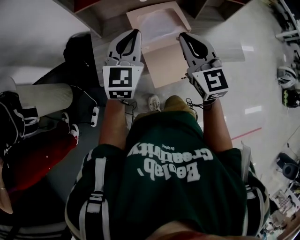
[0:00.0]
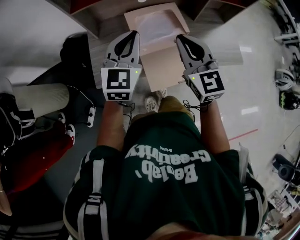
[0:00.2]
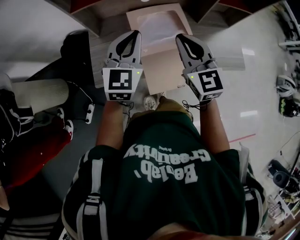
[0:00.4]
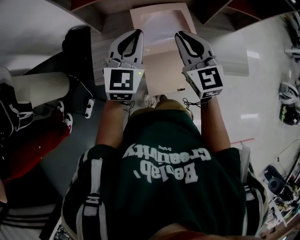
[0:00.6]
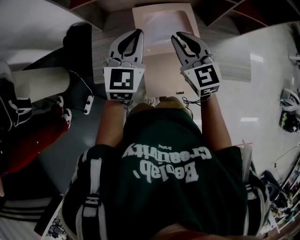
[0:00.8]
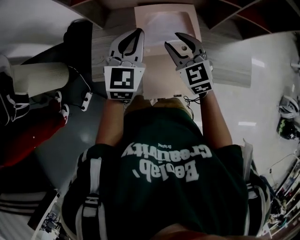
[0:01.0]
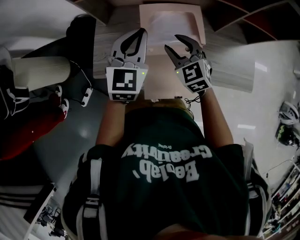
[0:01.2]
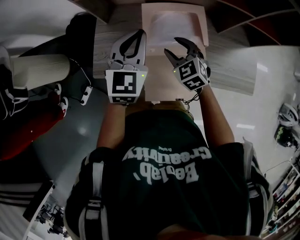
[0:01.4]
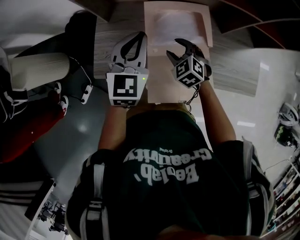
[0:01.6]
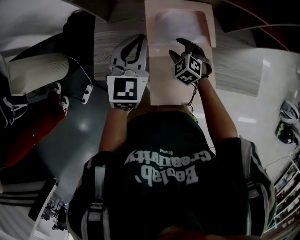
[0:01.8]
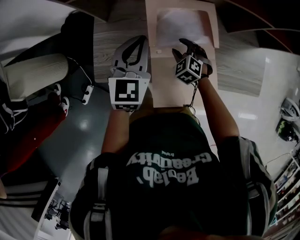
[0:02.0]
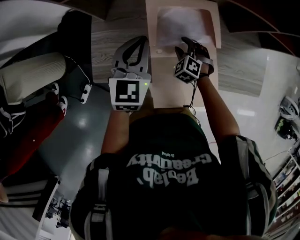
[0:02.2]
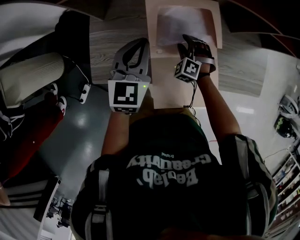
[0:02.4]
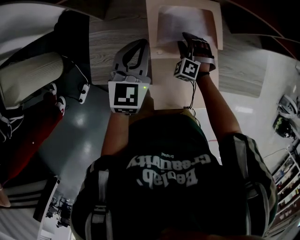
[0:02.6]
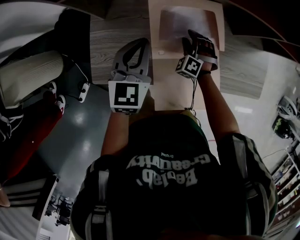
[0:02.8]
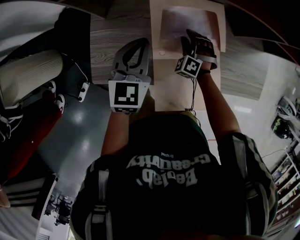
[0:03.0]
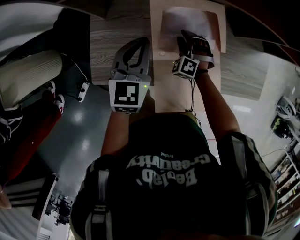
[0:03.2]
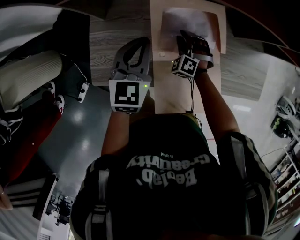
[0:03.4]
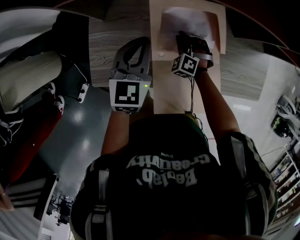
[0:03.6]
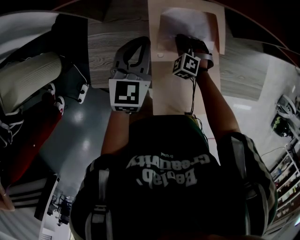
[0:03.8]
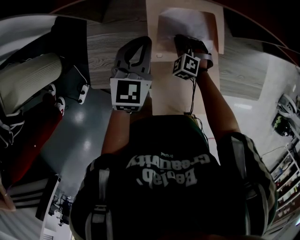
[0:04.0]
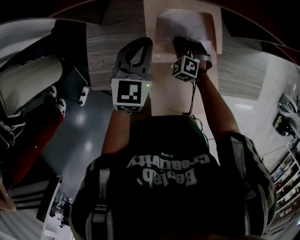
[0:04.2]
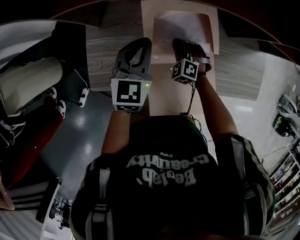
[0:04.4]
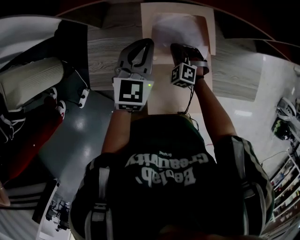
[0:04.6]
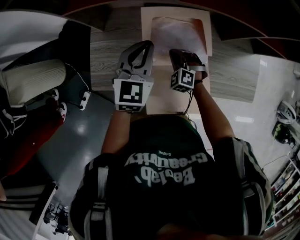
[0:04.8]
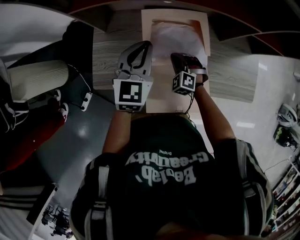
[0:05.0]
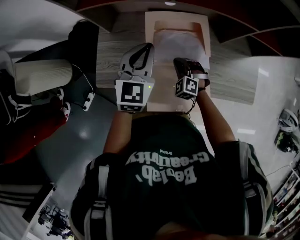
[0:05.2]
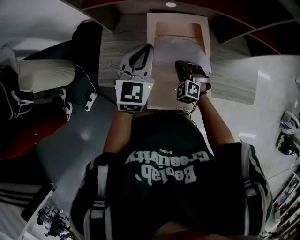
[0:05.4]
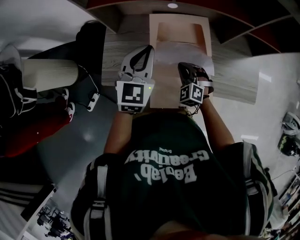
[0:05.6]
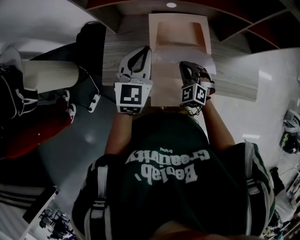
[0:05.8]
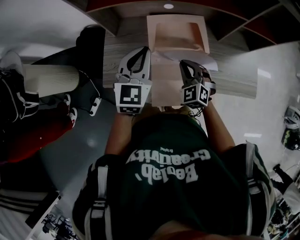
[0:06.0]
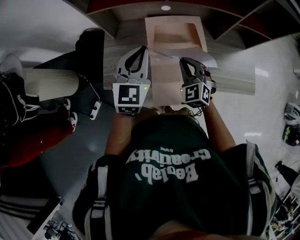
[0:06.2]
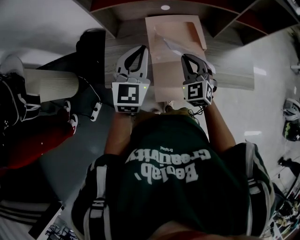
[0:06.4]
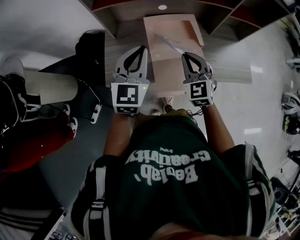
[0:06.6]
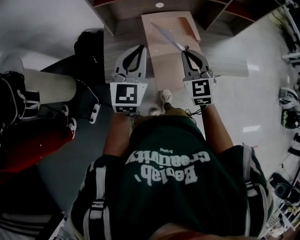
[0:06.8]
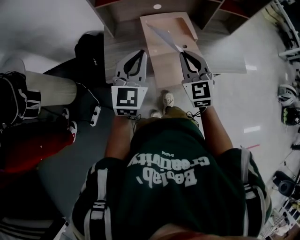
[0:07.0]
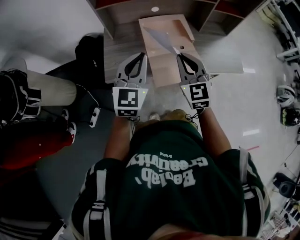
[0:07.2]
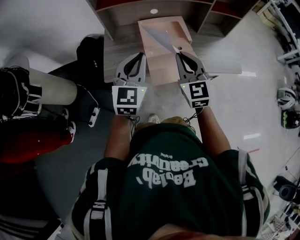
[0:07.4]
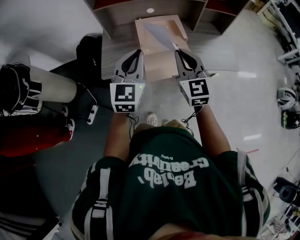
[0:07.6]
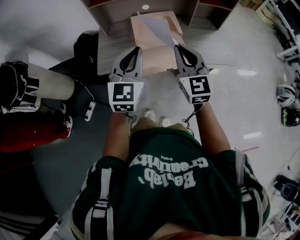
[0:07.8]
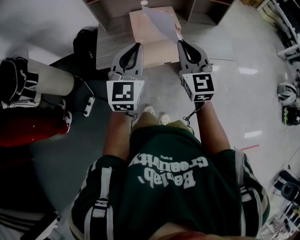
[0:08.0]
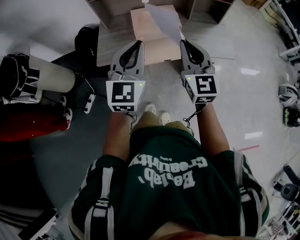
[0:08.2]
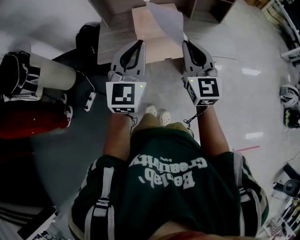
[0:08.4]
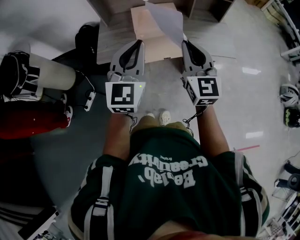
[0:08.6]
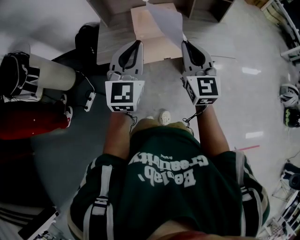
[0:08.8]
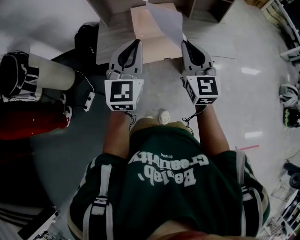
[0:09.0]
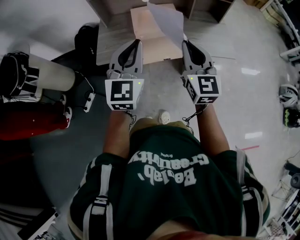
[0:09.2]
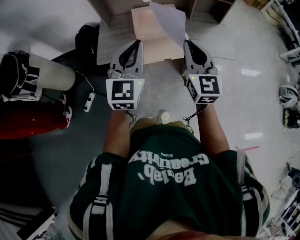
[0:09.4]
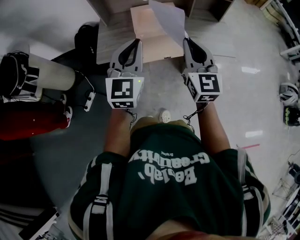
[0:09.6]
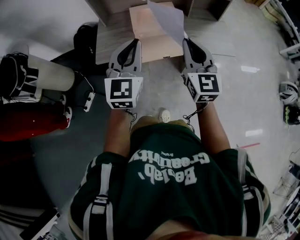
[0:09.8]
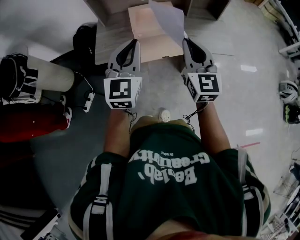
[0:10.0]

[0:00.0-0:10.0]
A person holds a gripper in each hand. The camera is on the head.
0.0 to 1.4 s: The right gripper heads downward and forward, covering about 25 cm, tilts its fingers approximately 30 degrees downward, and opens its fingers, while the left gripper shifts some 15 cm forward and downward.
1.4 to 2.8 s: The right gripper shifts about 20 cm downward and forward, and swivels approximately 40 degrees; the left gripper shifts about 10 cm downward.
2.8 to 4.2 s: The right gripper closes its fingers.
4.2 to 5.8 s: The grippers both shift upward and backward by approximately 20 cm.
5.8 to 7.2 s: The right gripper moves upward and backward, some 25 cm, and changes its angle by approximately 40 degrees; the left gripper moves backward, about 20 cm.
7.2 to 8.6 s: The right gripper moves to the right, backward and upward, some 20 cm, while the left gripper goes approximately 20 cm backward, to the right and upward.
8.6 to 10.0 s: The grippers move only a little.

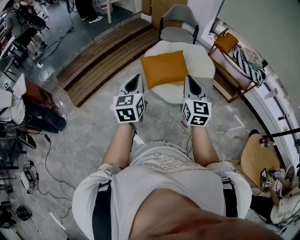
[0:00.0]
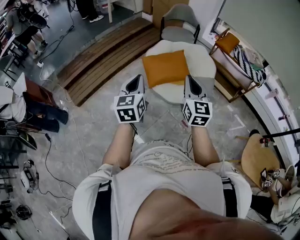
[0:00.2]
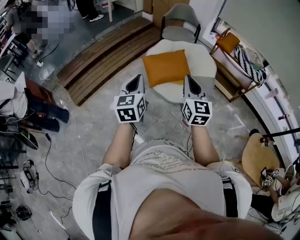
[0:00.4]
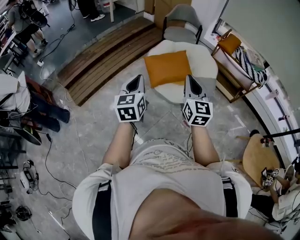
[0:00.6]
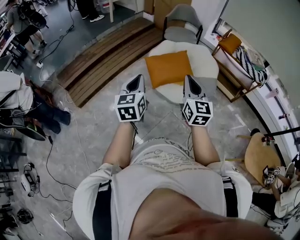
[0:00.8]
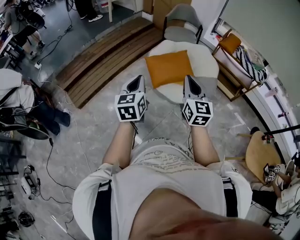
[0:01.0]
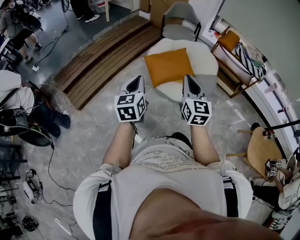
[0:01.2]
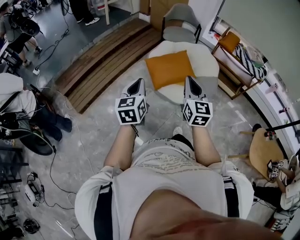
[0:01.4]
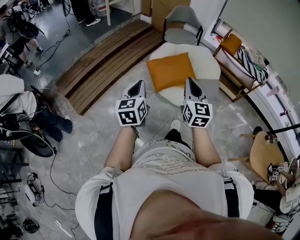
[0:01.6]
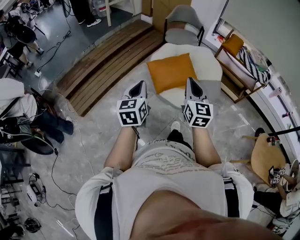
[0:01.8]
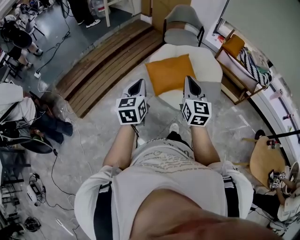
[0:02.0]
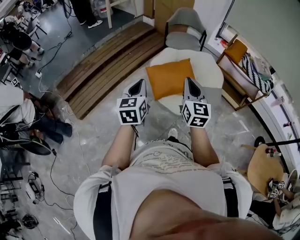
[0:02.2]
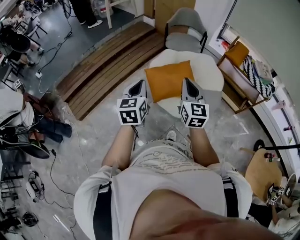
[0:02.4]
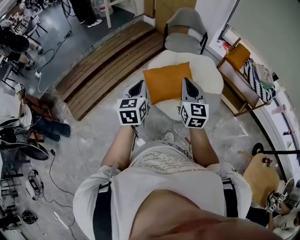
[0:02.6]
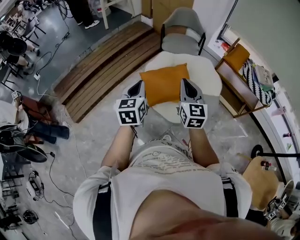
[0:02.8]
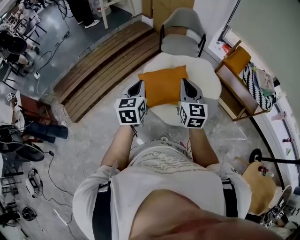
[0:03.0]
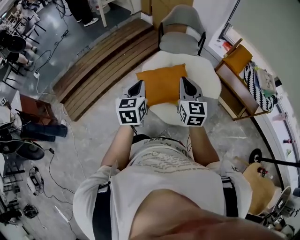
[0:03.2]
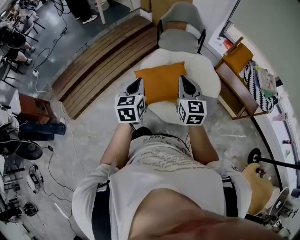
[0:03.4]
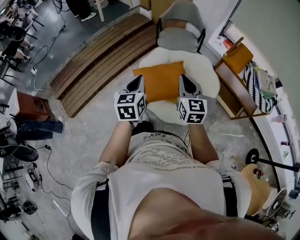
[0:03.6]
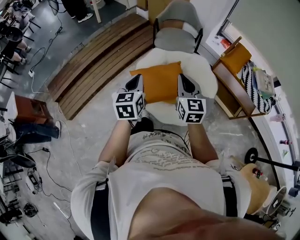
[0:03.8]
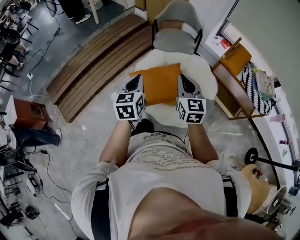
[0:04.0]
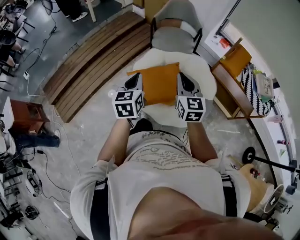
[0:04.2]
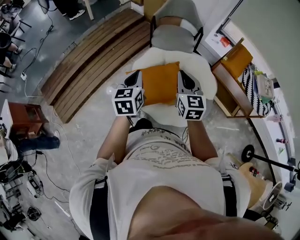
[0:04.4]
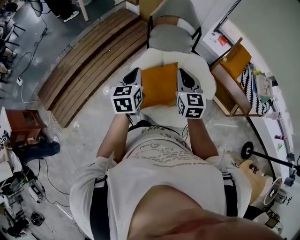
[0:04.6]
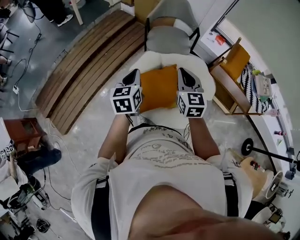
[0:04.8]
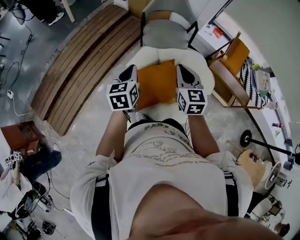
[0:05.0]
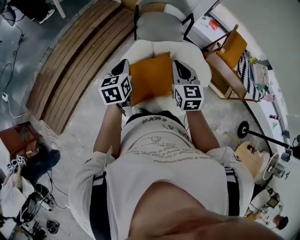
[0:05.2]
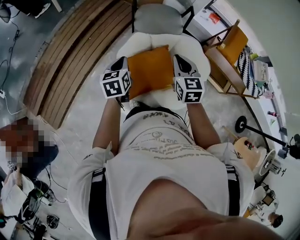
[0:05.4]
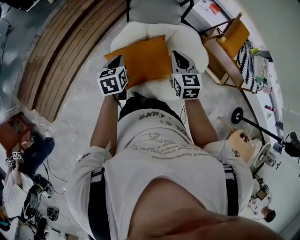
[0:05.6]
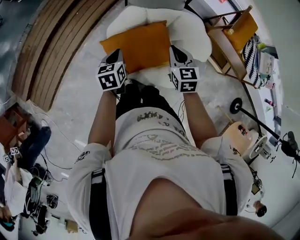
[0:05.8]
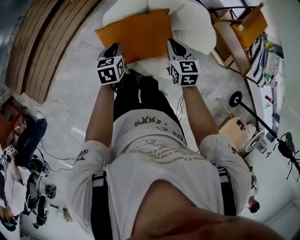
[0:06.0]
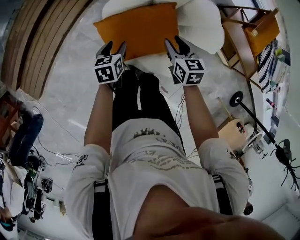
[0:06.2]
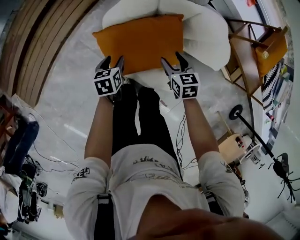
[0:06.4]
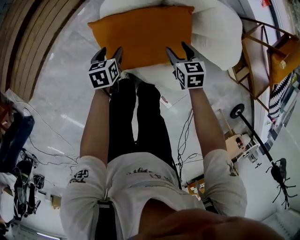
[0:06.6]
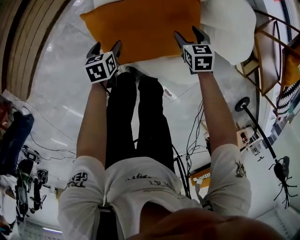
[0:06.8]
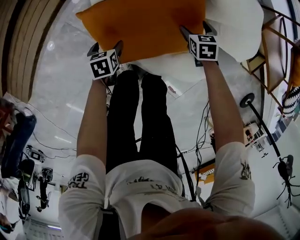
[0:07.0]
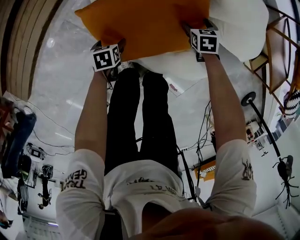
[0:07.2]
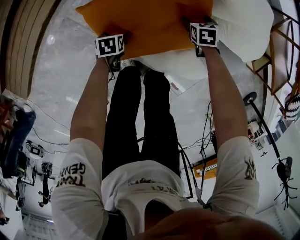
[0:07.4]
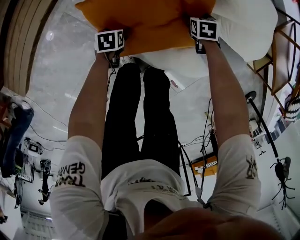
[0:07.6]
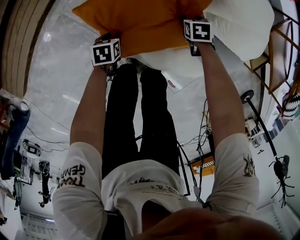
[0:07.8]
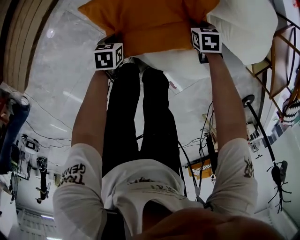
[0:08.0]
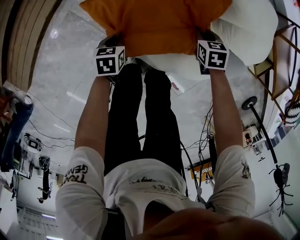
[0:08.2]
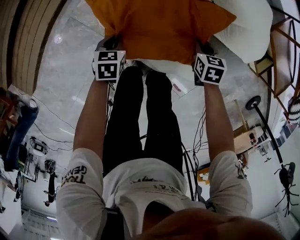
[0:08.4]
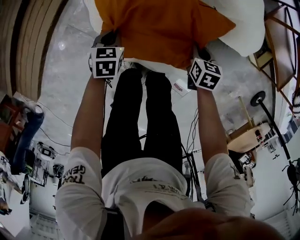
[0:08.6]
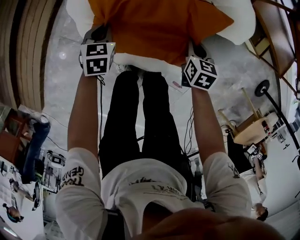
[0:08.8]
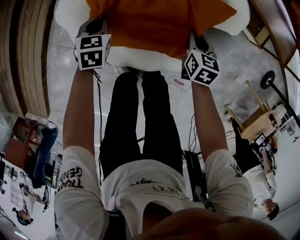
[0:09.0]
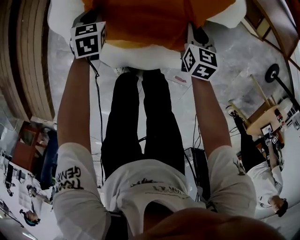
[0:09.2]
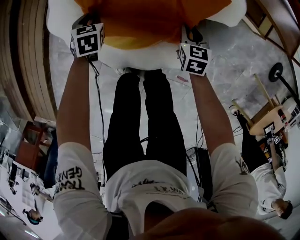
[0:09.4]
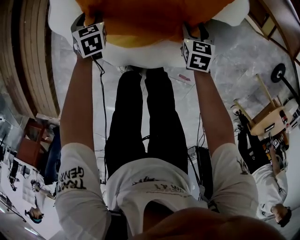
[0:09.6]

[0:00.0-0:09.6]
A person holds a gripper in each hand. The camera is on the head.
0.0 to 1.6 s: The two grippers go some 10 cm to the left.
1.6 to 3.2 s: The two grippers go about 35 cm forward and to the right.
3.2 to 4.8 s: Both grippers move forward, some 20 cm.
4.8 to 6.4 s: Both grippers move downward, about 40 cm. The right gripper tilts its fingers roughly 40 degrees downward, and opens its fingers. The left gripper tilts its fingers some 30 degrees downward, and opens.
6.4 to 8.0 s: The two grippers go some 25 cm downward. The right gripper changes its angle by roughly 20 degrees, and closes. The left gripper closes its fingers.
8.0 to 9.6 s: The right gripper ends up roughly 20 cm from where it was, rotates roughly 40 degrees, and opens its fingers, while the left gripper changes place by approximately 25 cm, swivels some 40 degrees, and opens up.

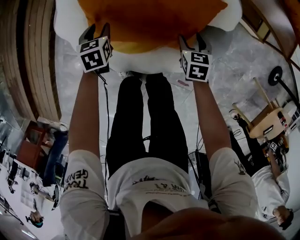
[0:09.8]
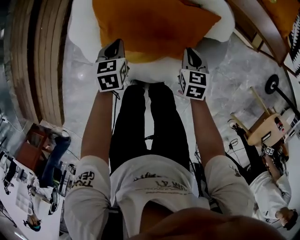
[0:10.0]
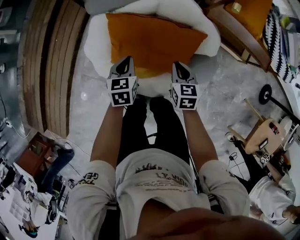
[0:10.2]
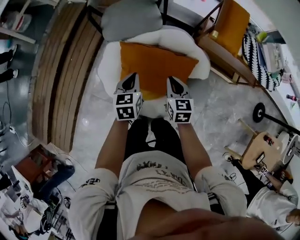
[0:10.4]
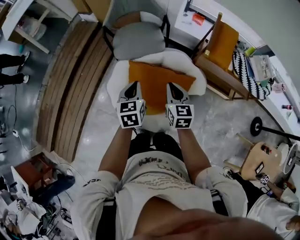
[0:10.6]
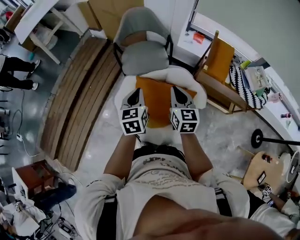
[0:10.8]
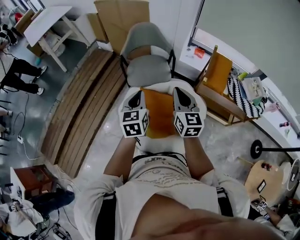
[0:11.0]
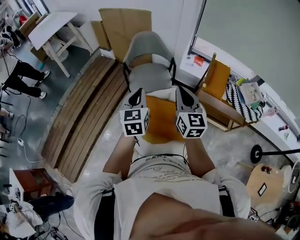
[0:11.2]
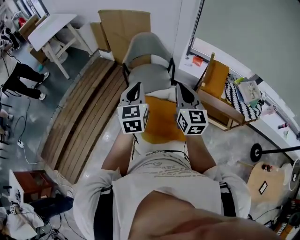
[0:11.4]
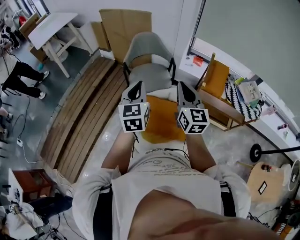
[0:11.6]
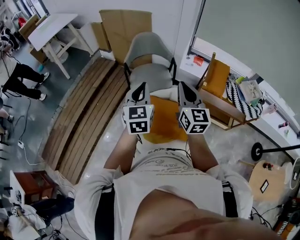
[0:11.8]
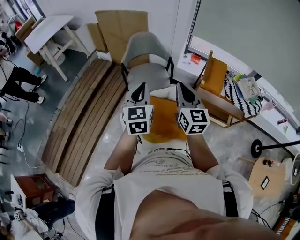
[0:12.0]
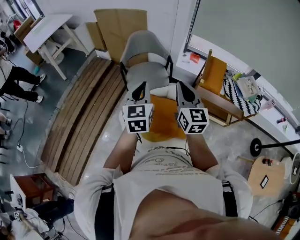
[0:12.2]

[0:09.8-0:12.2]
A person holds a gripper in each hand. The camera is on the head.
9.8 to 11.0 s: The two grippers go some 60 cm upward. The left gripper tilts its fingers roughly 40 degrees upward, and closes up. The right gripper tips its fingers upward by about 50 degrees, and closes.
11.0 to 12.2 s: Both grippers move upward, some 10 cm.

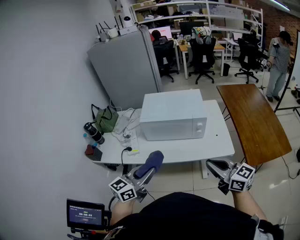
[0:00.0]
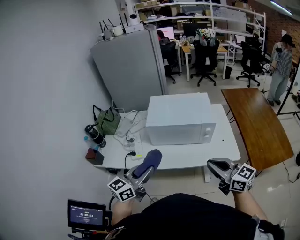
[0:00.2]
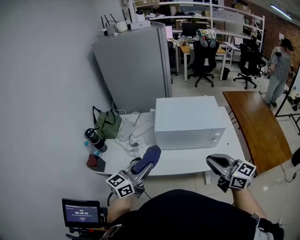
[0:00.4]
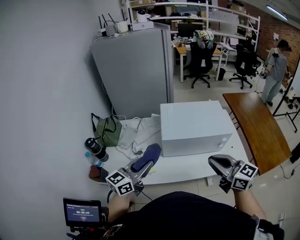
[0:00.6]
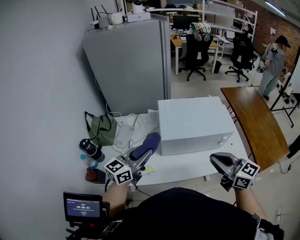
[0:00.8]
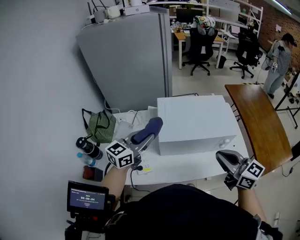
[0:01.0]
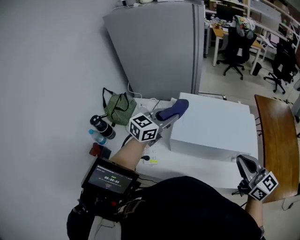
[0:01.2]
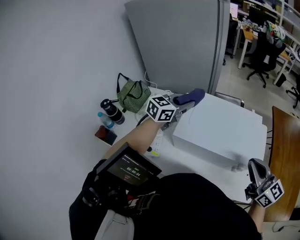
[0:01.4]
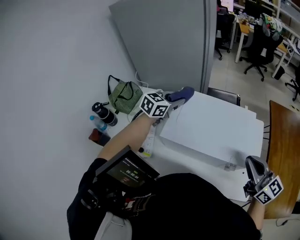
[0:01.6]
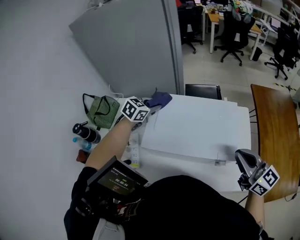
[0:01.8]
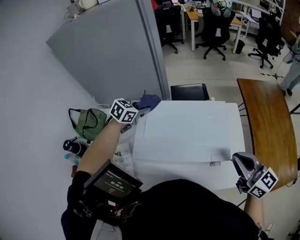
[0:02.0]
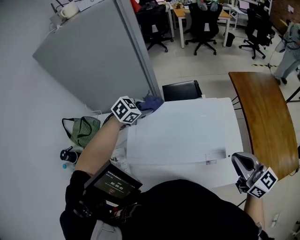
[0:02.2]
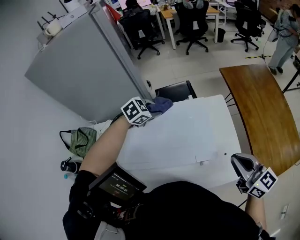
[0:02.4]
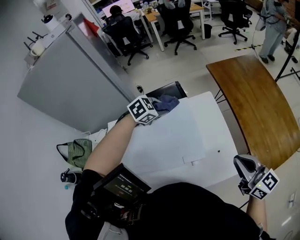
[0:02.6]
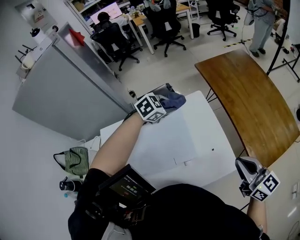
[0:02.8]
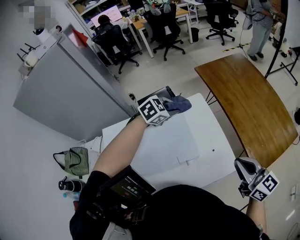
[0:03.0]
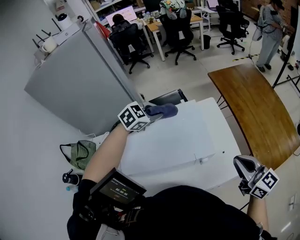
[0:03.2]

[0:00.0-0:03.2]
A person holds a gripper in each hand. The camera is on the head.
0.0 to 1.6 s: The left gripper goes approximately 50 cm forward, and swivels some 20 degrees; the right gripper travels forward by approximately 30 cm.
1.6 to 3.2 s: The left gripper rotates about 50 degrees, while the right gripper swivels roughly 30 degrees.
